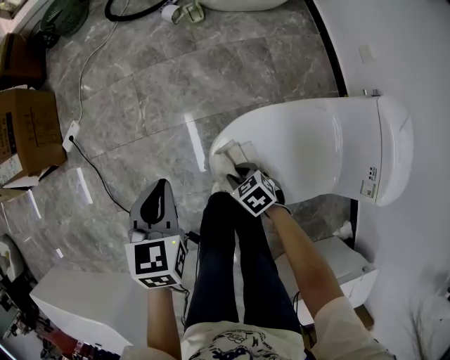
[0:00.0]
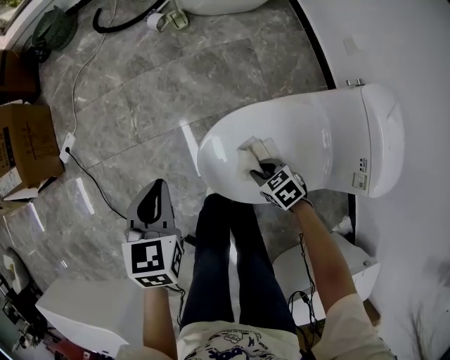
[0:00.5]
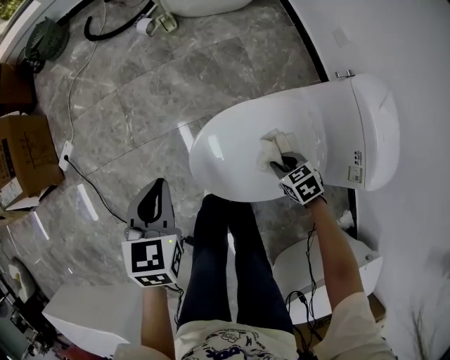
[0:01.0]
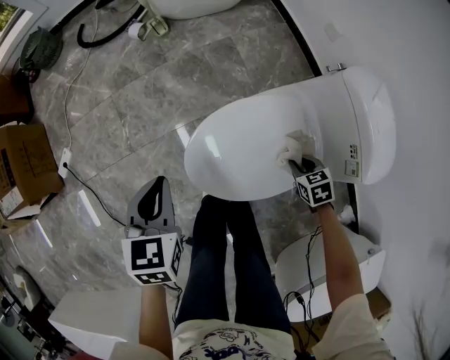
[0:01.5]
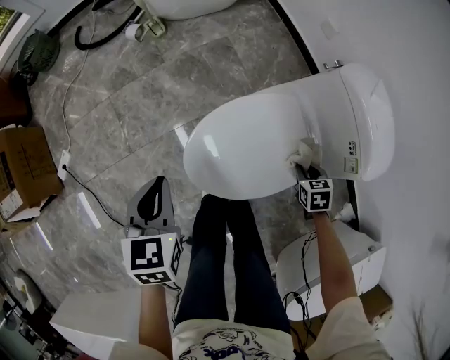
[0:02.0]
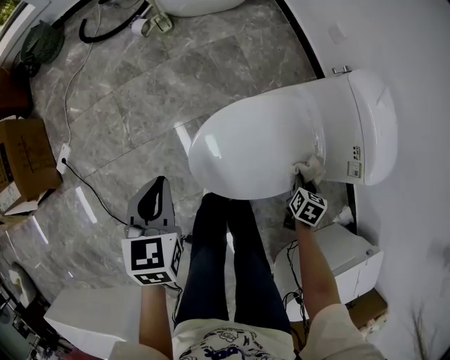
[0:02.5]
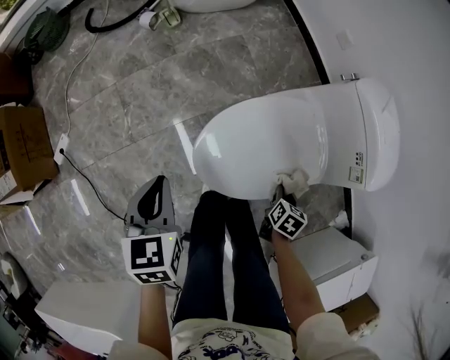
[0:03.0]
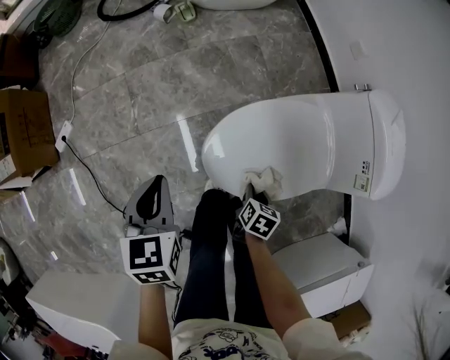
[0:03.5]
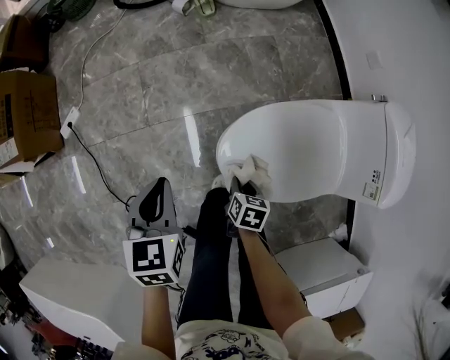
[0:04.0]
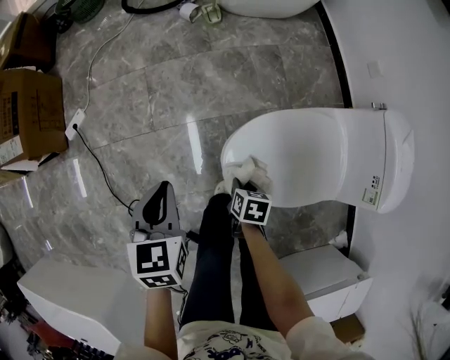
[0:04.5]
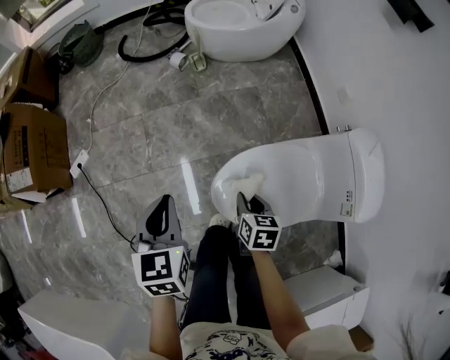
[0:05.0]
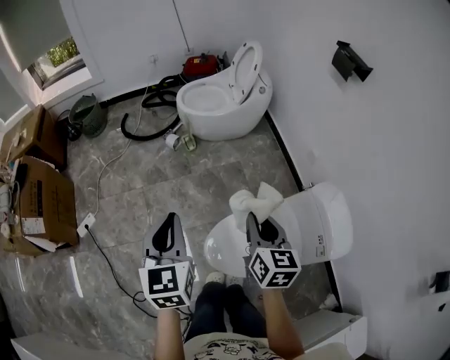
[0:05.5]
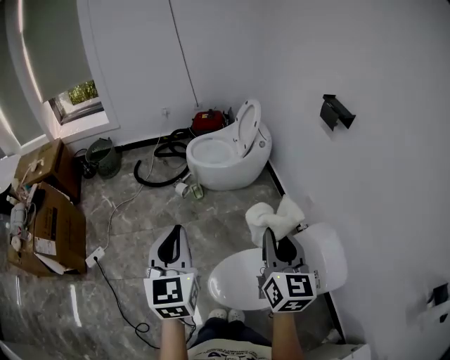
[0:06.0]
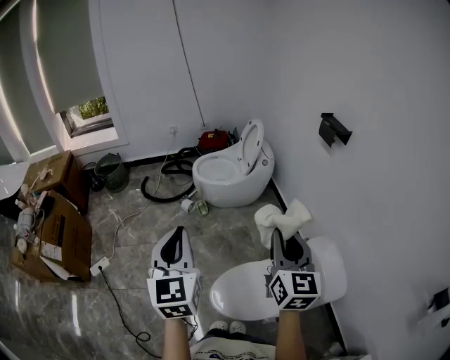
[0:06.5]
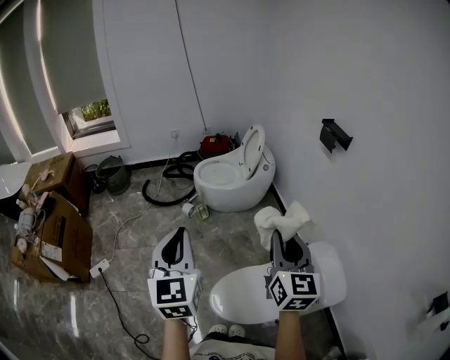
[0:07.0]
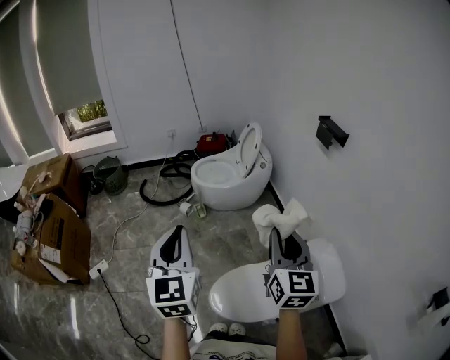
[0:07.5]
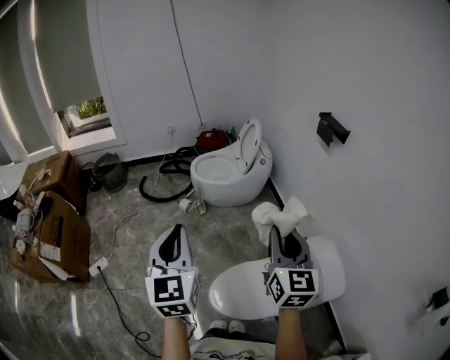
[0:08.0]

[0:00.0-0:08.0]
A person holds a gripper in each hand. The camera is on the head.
0:00.0 to 0:02.0: The left gripper changes place by about 10 cm. Meanwhile the right gripper moves approximately 35 cm, and rotates roughly 50 degrees.
0:02.0 to 0:04.0: The right gripper ends up approximately 30 cm from where it was, and rotates about 20 degrees, while the left gripper changes place by roughly 15 cm.
0:04.0 to 0:06.0: The grippers both shift upward by some 50 cm. The right gripper tilts its fingers roughly 60 degrees upward; the left gripper angles its fingers upward, by some 40 degrees.
0:06.0 to 0:08.0: The left gripper goes roughly 5 cm upward. Meanwhile the right gripper moves some 5 cm.

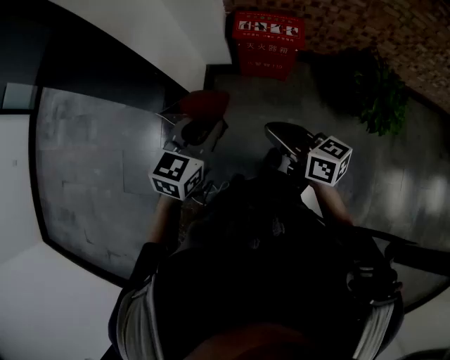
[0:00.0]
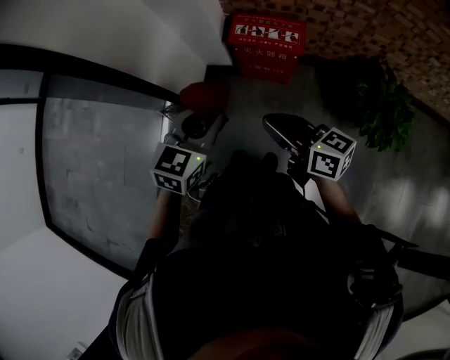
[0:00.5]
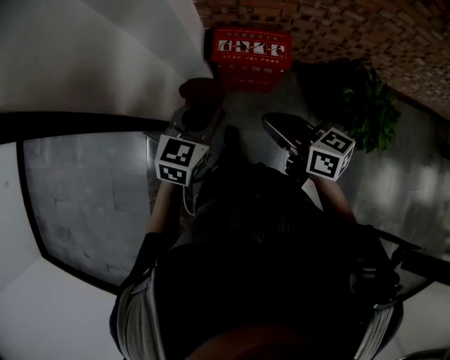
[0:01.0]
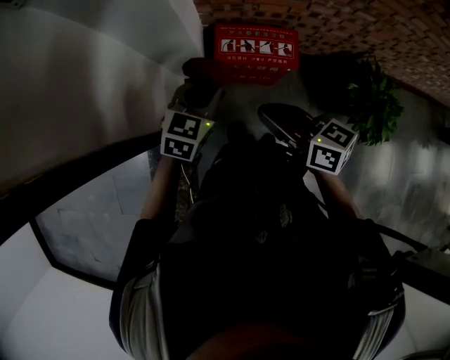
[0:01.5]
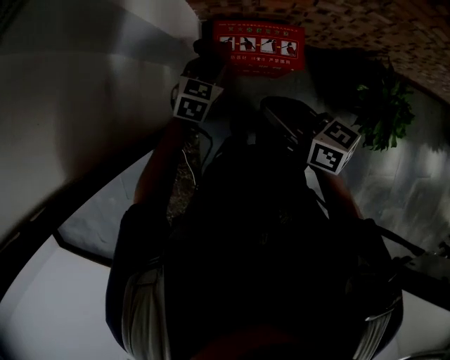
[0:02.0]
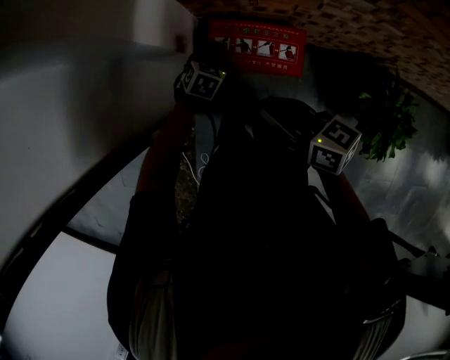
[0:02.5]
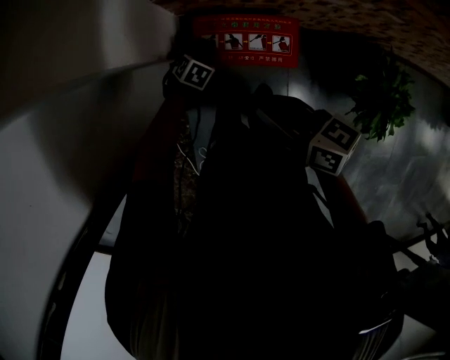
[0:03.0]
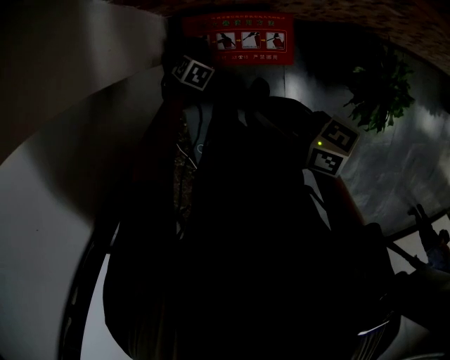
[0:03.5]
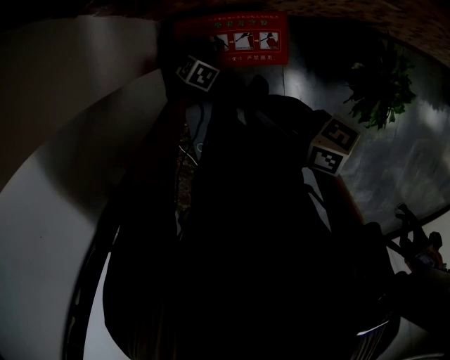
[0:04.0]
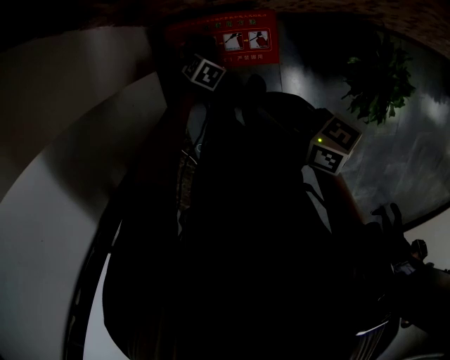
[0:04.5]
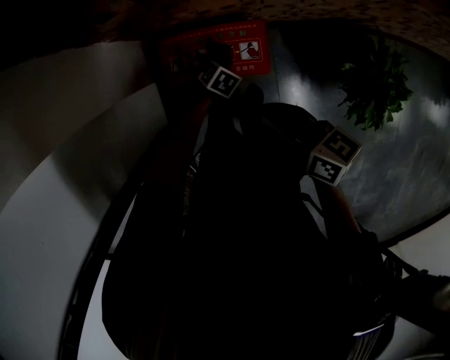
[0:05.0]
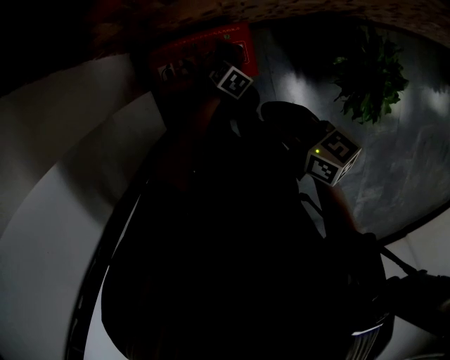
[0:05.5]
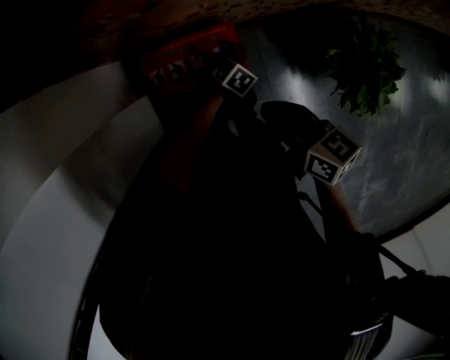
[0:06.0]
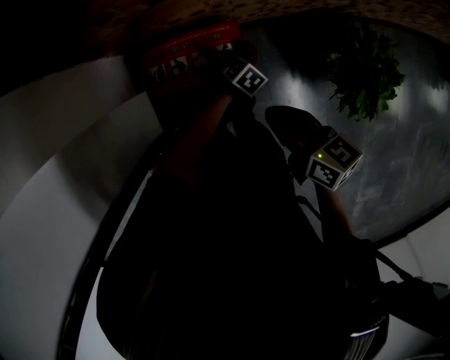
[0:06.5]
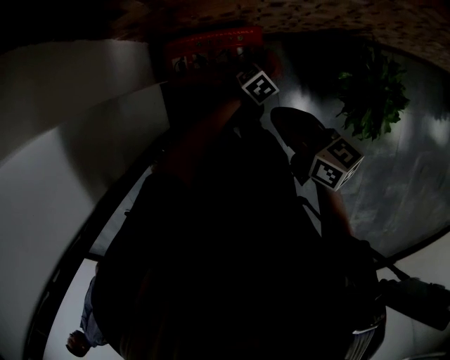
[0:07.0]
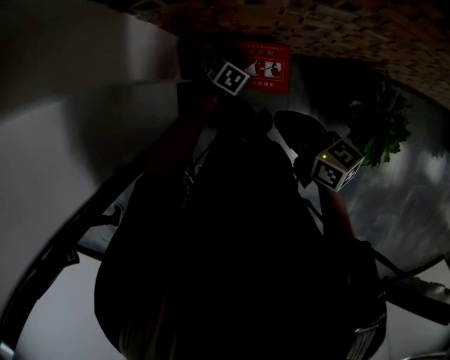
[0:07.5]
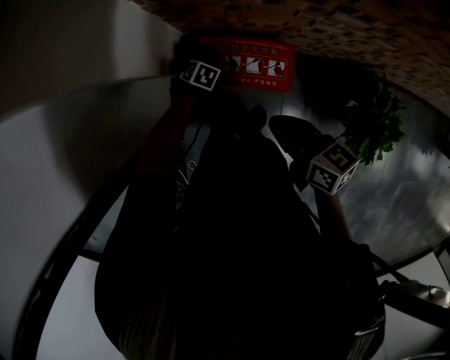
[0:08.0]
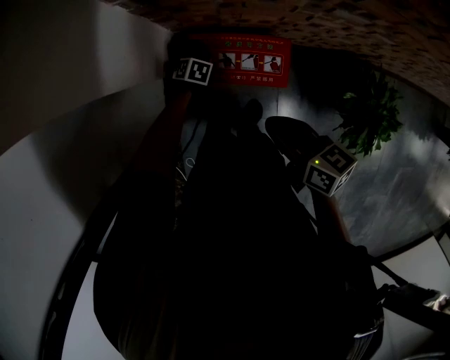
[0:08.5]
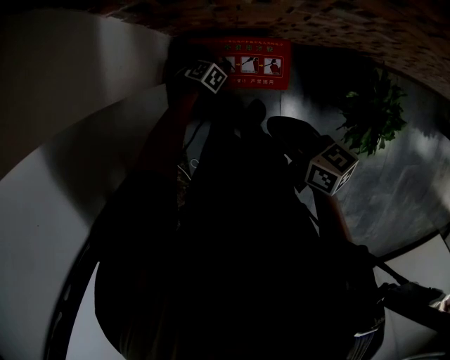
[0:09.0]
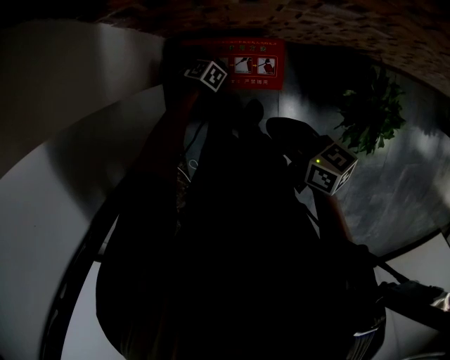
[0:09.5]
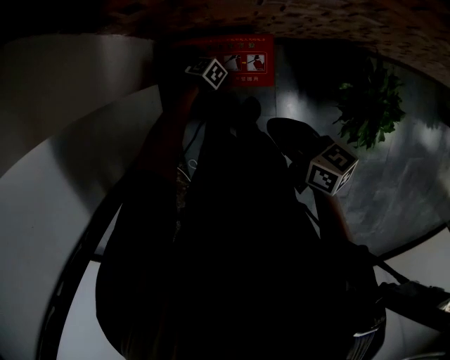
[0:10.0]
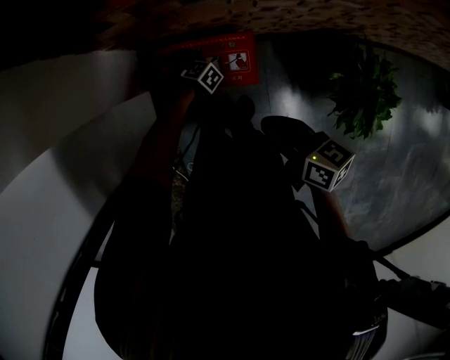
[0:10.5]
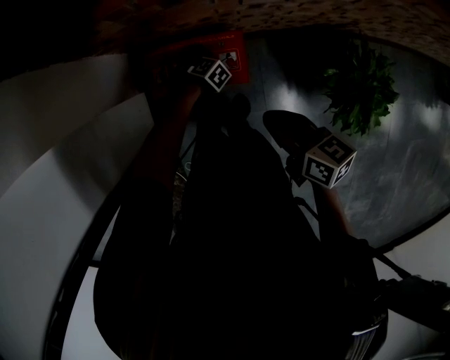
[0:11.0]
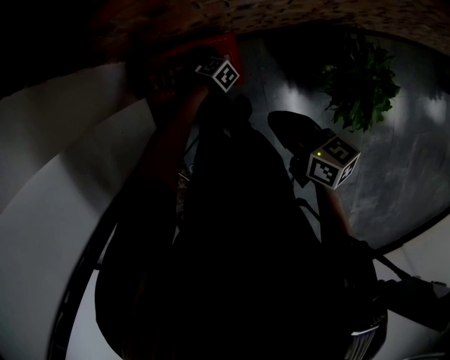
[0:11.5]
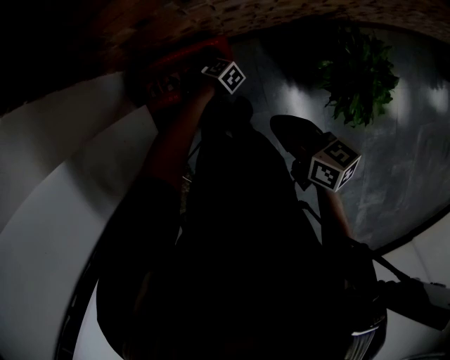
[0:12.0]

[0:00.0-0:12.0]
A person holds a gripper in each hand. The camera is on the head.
0:00.0 to 0:02.0: The left gripper heads forward and downward, covering about 50 cm. The right gripper is displaced forward by roughly 35 cm.
0:02.0 to 0:04.0: The left gripper goes roughly 25 cm downward, and angles its fingers downward, by roughly 40 degrees. Meanwhile the right gripper shifts by some 15 cm.
0:04.0 to 0:06.0: The left gripper moves some 25 cm. The right gripper moves approximately 15 cm.
0:06.0 to 0:08.0: The left gripper reaches some 10 cm upward, then returns, and swivels some 30 degrees. Meanwhile the right gripper moves approximately 15 cm.
0:08.0 to 0:10.0: The left gripper ends up approximately 5 cm from where it was, and swivels about 30 degrees. Meanwhile the right gripper moves roughly 5 cm.
0:10.0 to 0:12.0: The left gripper changes place by about 20 cm. The right gripper shifts by approximately 10 cm.

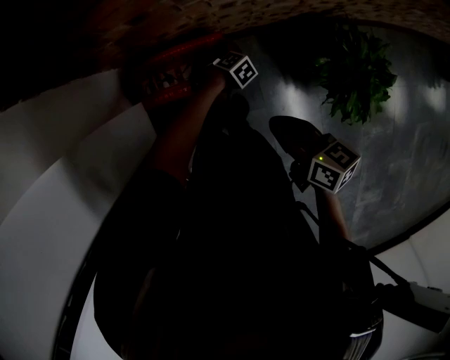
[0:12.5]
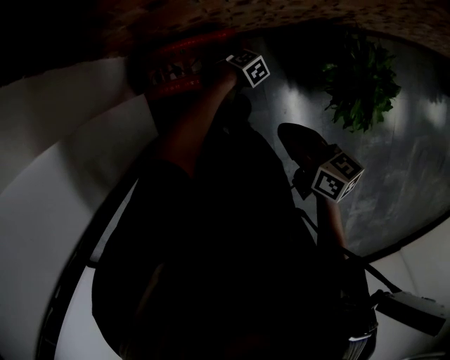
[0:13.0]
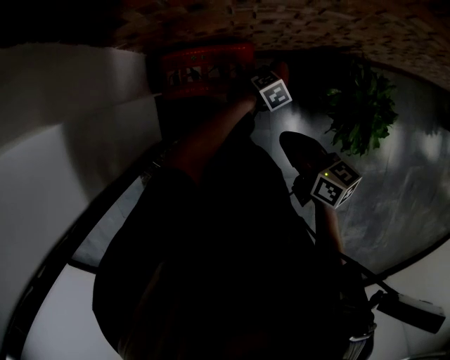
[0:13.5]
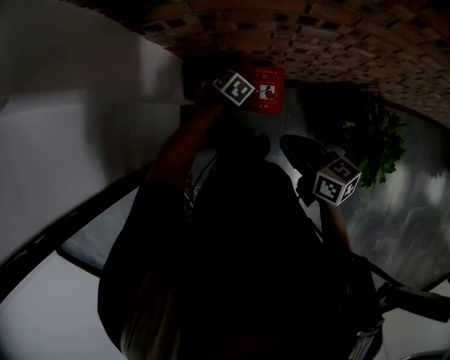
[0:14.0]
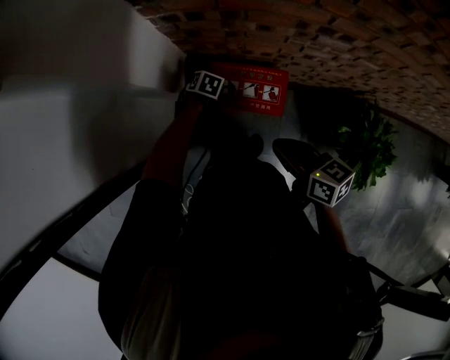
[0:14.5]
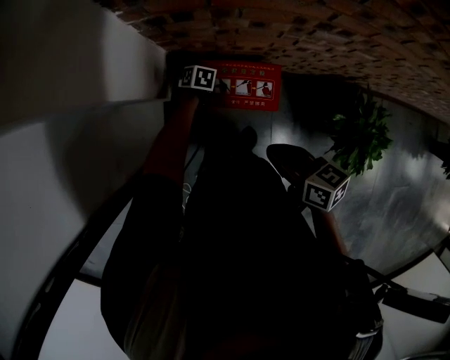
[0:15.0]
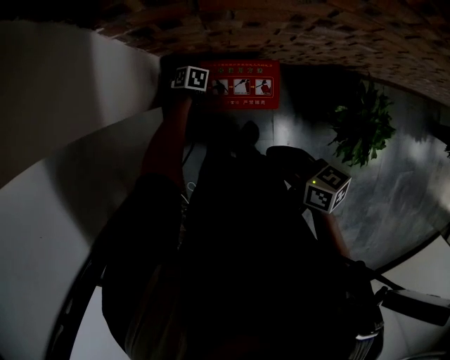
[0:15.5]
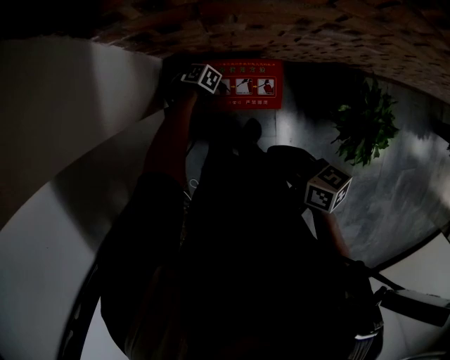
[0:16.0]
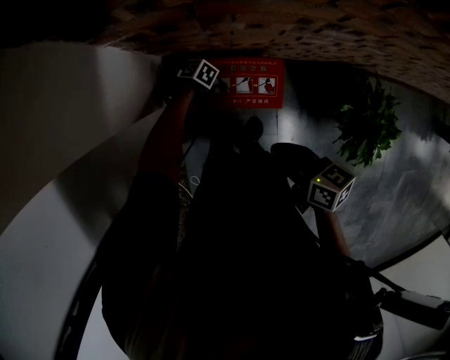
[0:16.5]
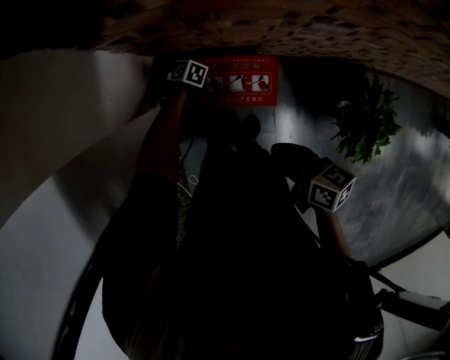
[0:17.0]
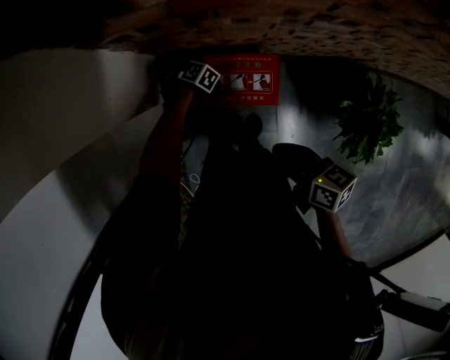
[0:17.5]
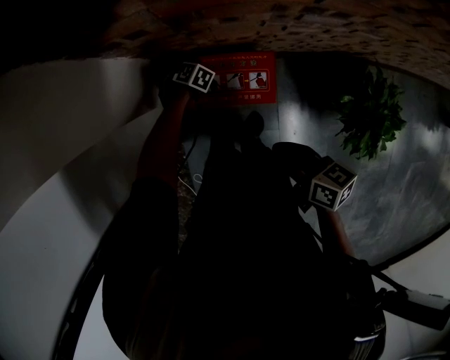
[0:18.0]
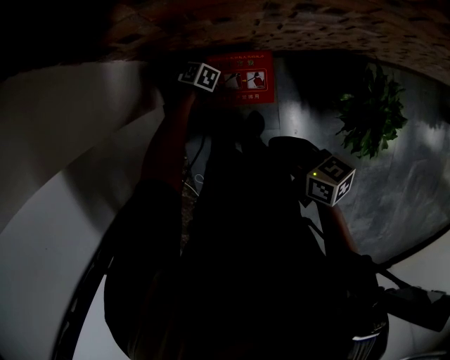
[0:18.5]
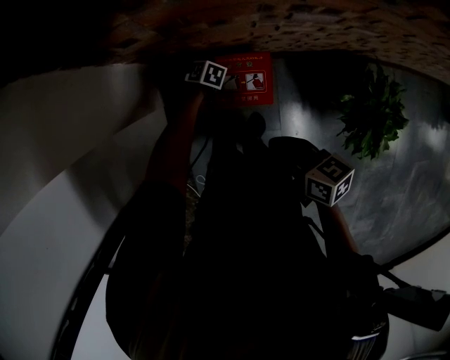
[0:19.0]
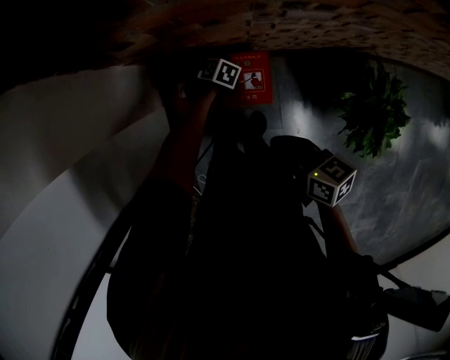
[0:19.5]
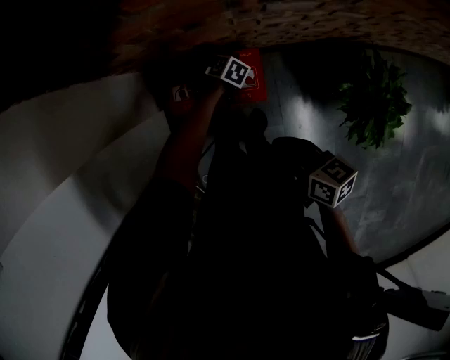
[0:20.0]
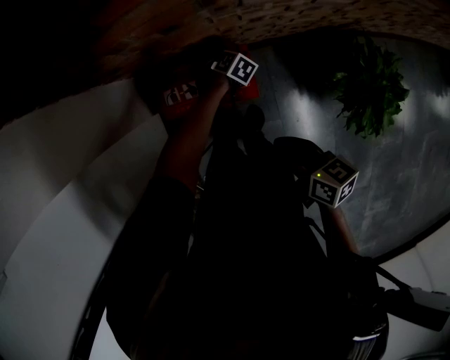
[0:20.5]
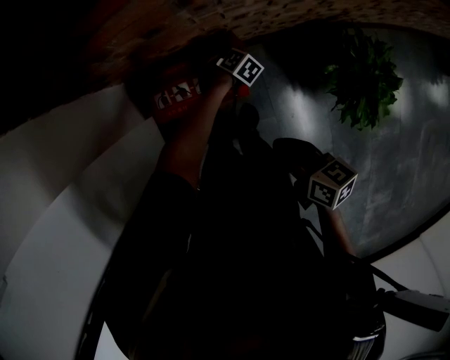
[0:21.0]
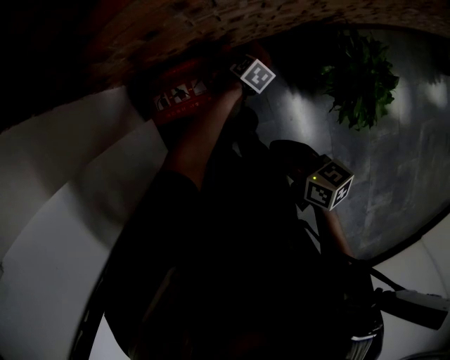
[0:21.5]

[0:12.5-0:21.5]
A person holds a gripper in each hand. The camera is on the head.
0:12.5 to 0:14.5: The left gripper changes place by approximately 30 cm, and rolls counterclockwise, seen from behind, by roughly 50 degrees; the right gripper shifts by approximately 15 cm, and changes its angle by about 20 degrees.
0:14.5 to 0:17.0: The right gripper moves some 5 cm, while the left gripper moves about 10 cm.
0:17.0 to 0:19.5: The left gripper shifts by roughly 15 cm.
0:19.5 to 0:21.5: The left gripper shifts by roughly 25 cm, and swivels some 30 degrees. The right gripper shifts by some 10 cm.
